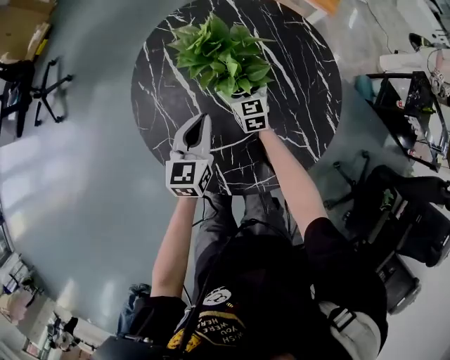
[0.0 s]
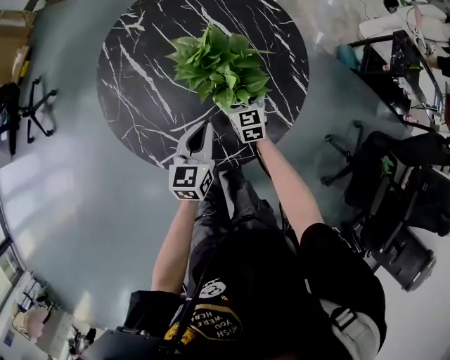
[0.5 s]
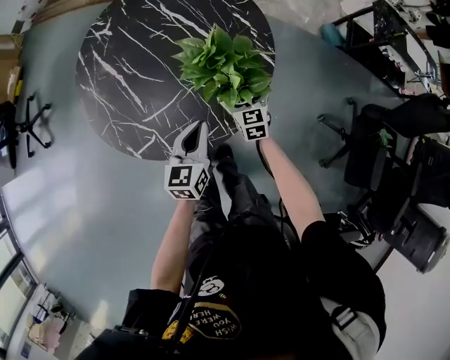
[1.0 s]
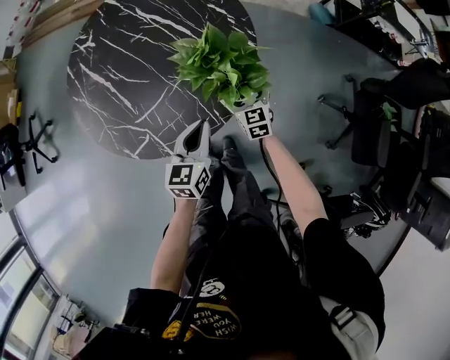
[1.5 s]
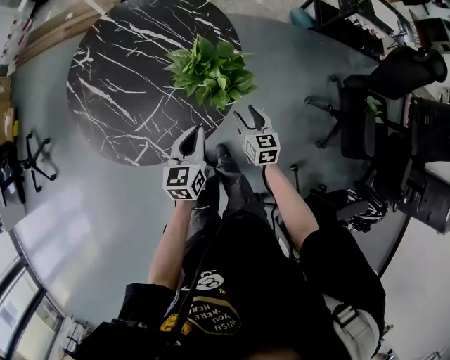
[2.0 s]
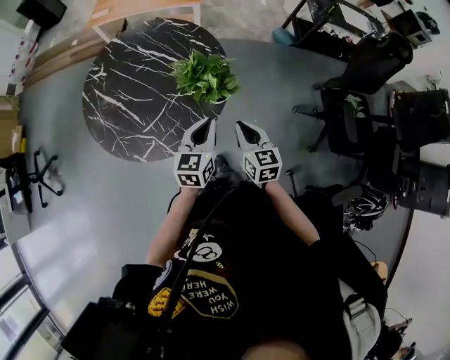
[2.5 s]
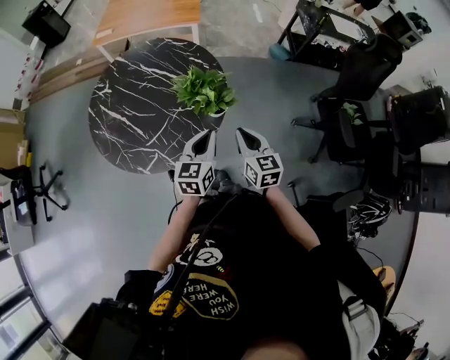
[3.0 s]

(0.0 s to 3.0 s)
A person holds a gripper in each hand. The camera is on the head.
0.0 s - 1.5 s: The two grippers go some 35 cm to the right and backward. The left gripper turns by some 20 degrees.
1.5 s - 3.0 s: The right gripper moves upward and backward, approximately 35 cm, changes its angle by about 20 degrees, and closes up; the left gripper heads upward, covering roughly 15 cm.

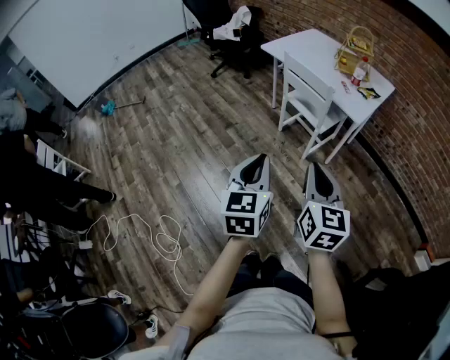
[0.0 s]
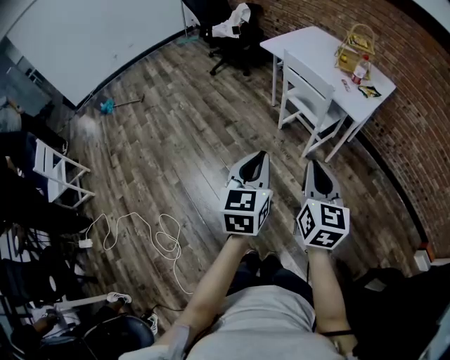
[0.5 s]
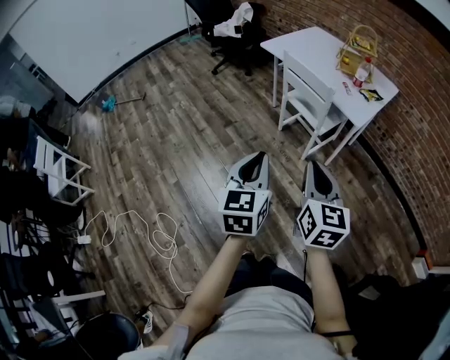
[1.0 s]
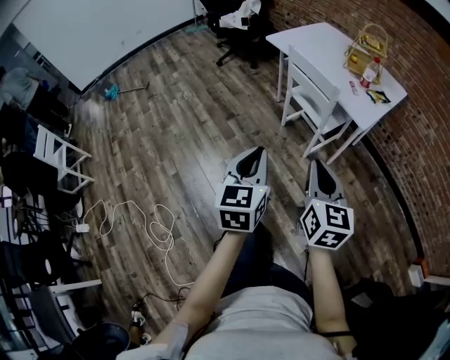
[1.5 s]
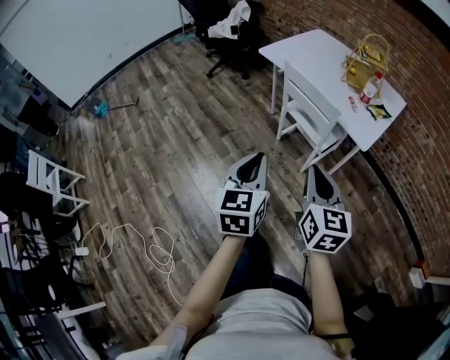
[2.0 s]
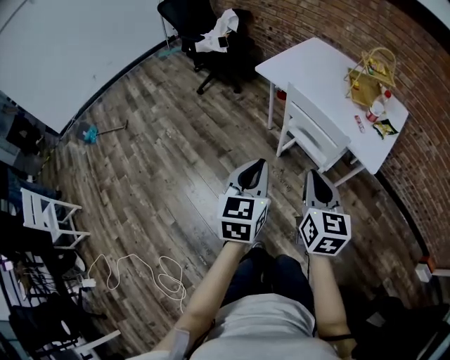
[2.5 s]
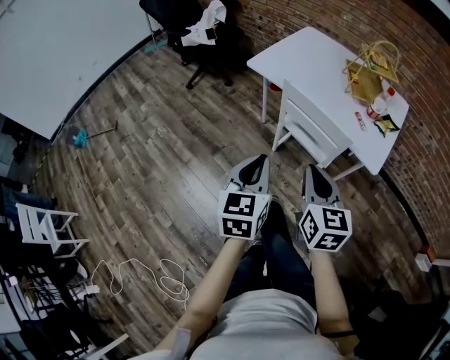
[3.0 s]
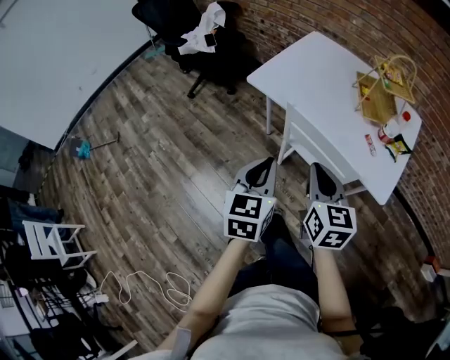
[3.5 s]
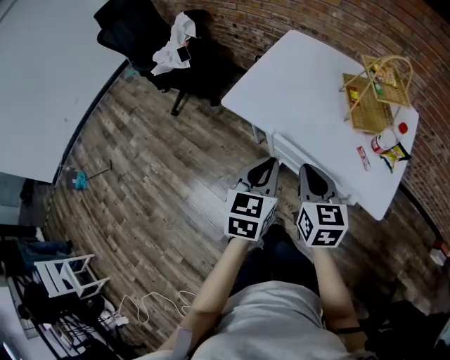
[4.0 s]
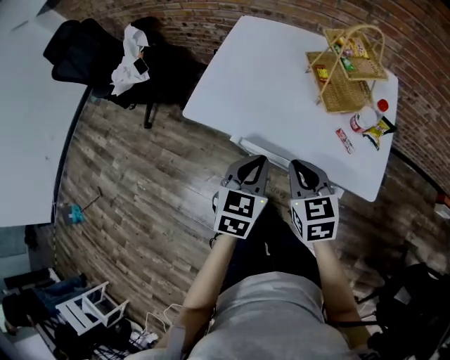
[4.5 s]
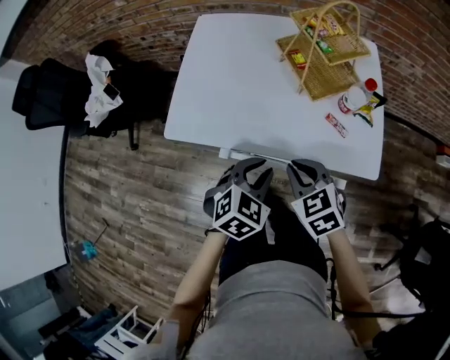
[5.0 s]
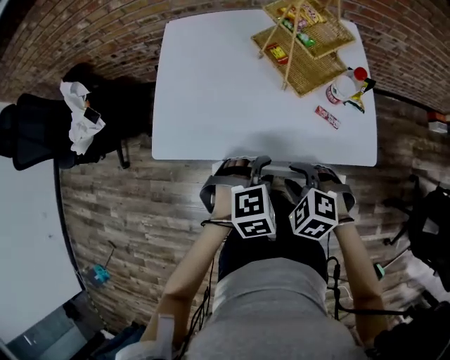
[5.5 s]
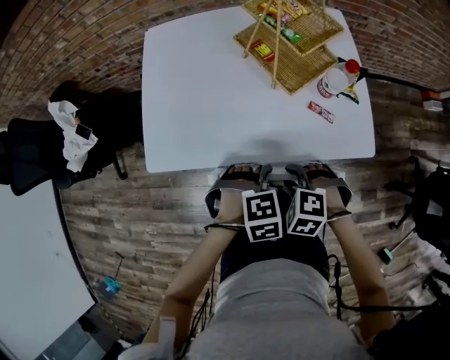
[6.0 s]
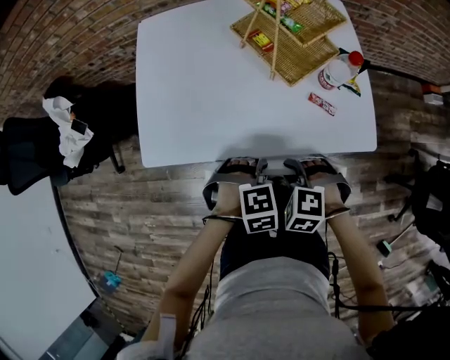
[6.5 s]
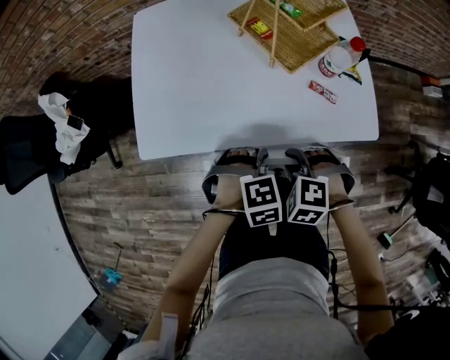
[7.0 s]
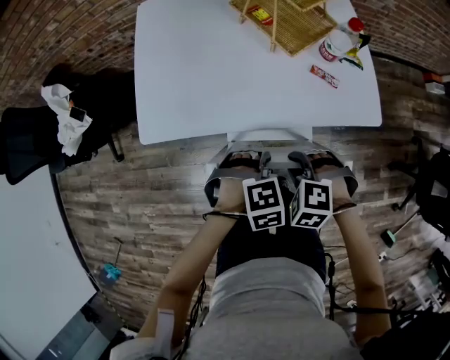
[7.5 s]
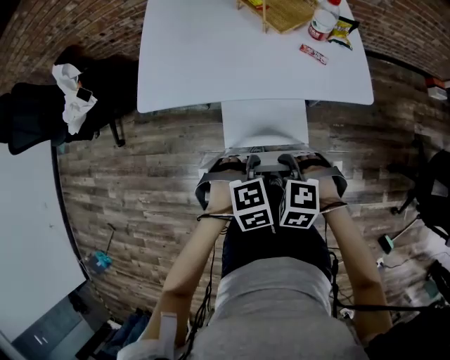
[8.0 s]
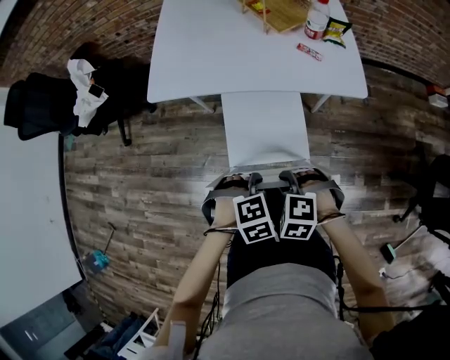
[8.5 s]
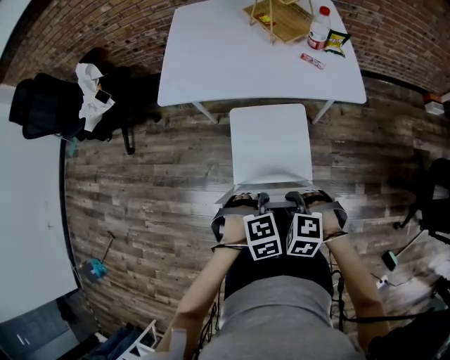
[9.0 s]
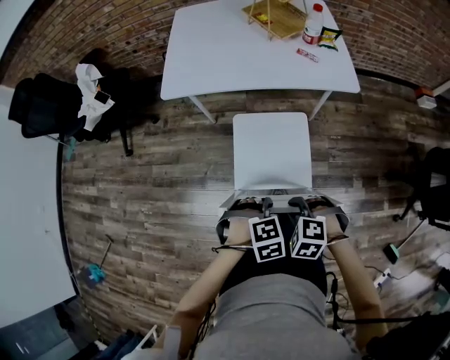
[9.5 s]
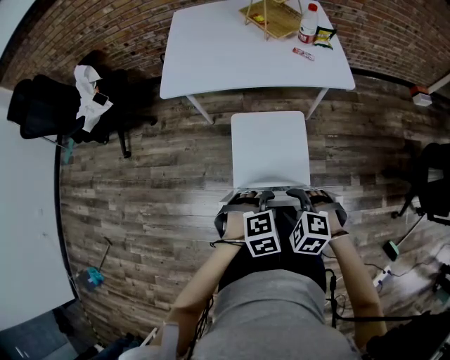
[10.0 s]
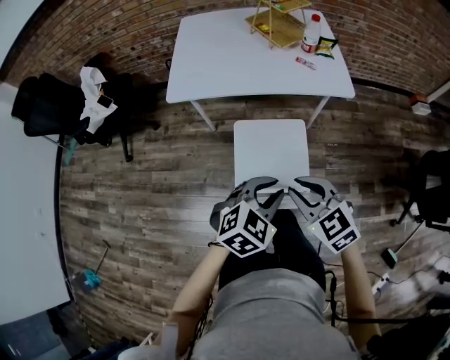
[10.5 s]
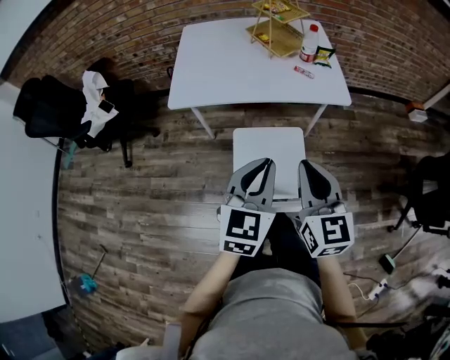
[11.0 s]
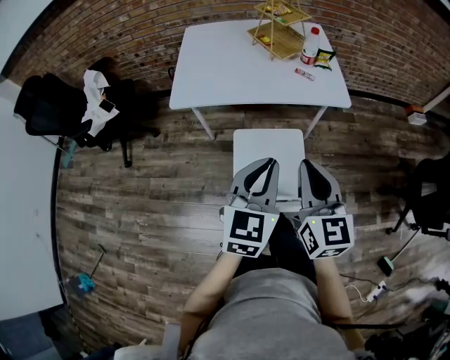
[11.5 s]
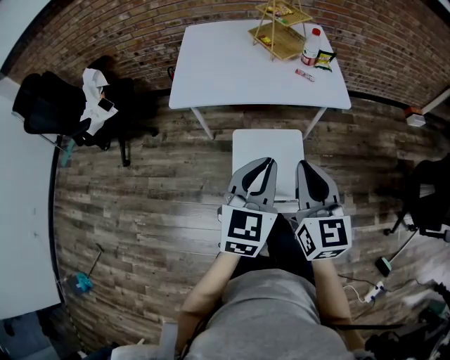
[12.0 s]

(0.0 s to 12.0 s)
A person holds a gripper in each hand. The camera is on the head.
0.0 s - 2.0 s: Both grippers travel together forward, about 20 cm.
2.0 s - 4.0 s: The two grippers travel together, forward, approximately 50 cm. The left gripper rotates roughly 20 degrees.
4.0 s - 6.0 s: Both grippers move downward, approximately 15 cm. The right gripper angles its fingers downward, by roughly 50 degrees, and opens its fingers. Meanwhile the left gripper tips its fingers downward by roughly 50 degrees, and opens.
6.0 s - 8.0 s: The right gripper ends up about 15 cm from where it was, while the left gripper changes place by some 15 cm, and closes up.
8.0 s - 10.0 s: The right gripper changes place by about 25 cm, and opens; the left gripper ends up roughly 25 cm from where it was.
10.0 s - 12.0 s: The two grippers go about 25 cm upward and forward. The right gripper points its fingers roughly 50 degrees further upward, and closes, while the left gripper points its fingers approximately 50 degrees further upward, and closes.

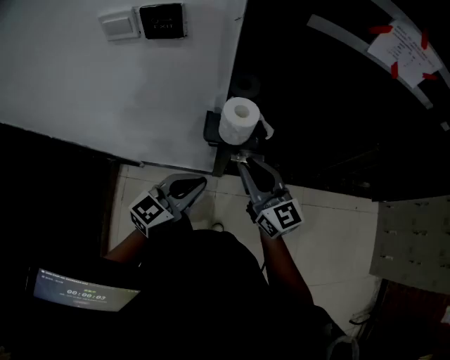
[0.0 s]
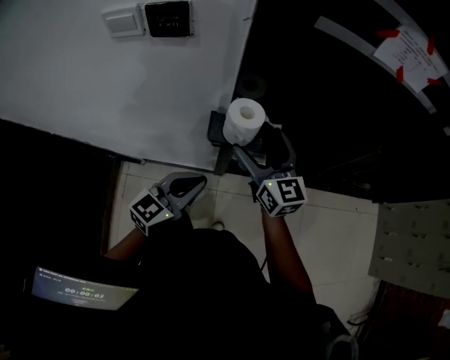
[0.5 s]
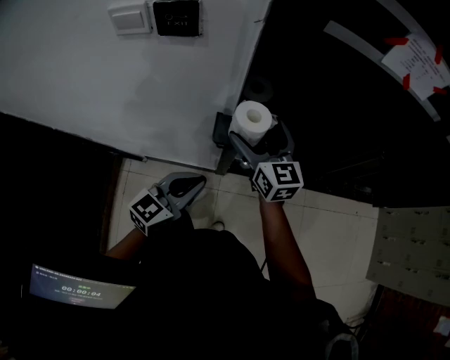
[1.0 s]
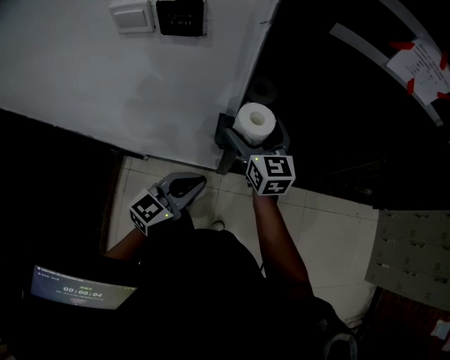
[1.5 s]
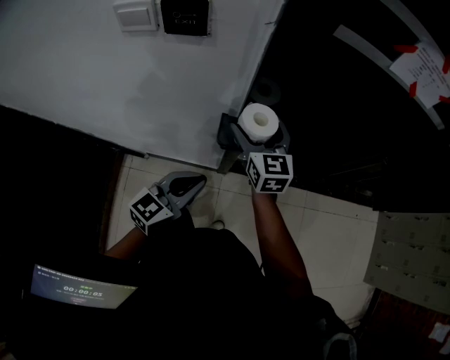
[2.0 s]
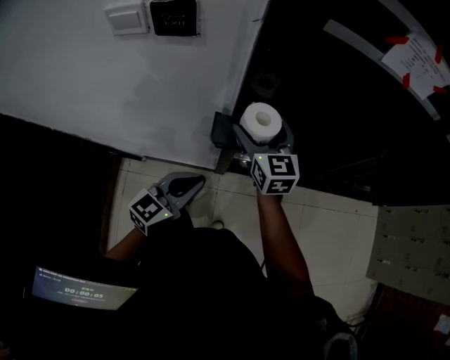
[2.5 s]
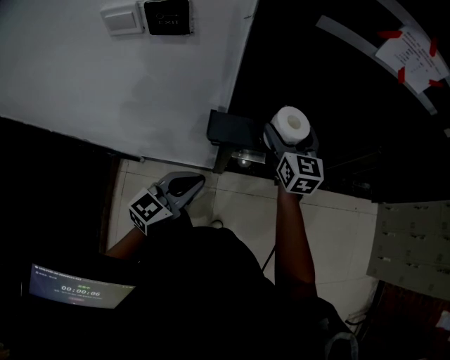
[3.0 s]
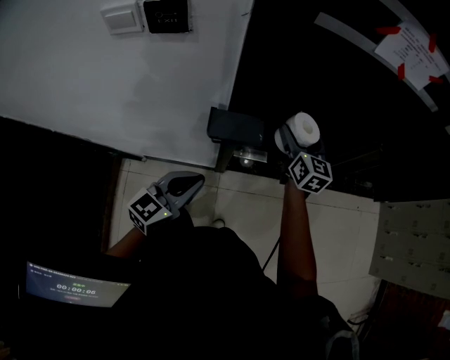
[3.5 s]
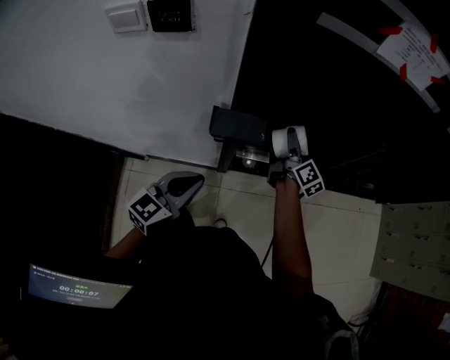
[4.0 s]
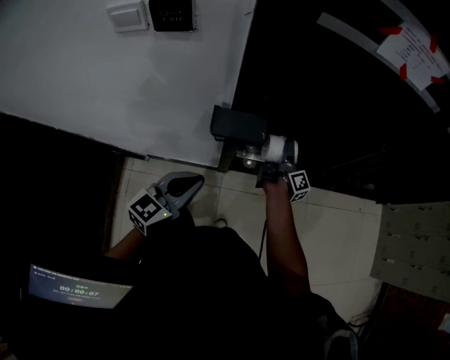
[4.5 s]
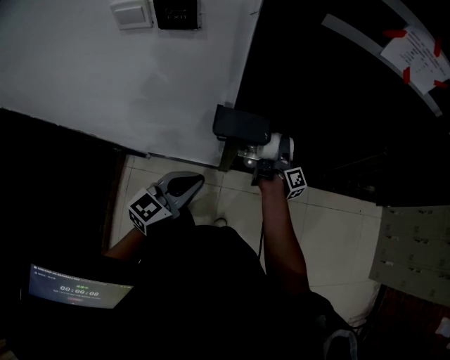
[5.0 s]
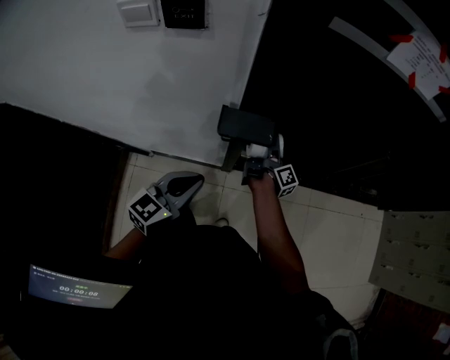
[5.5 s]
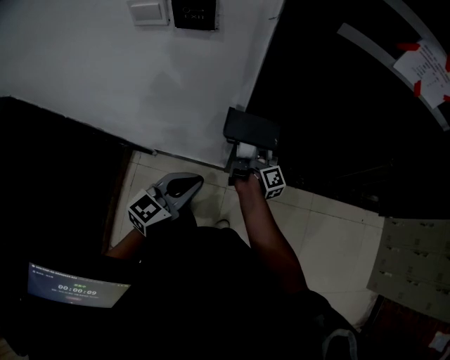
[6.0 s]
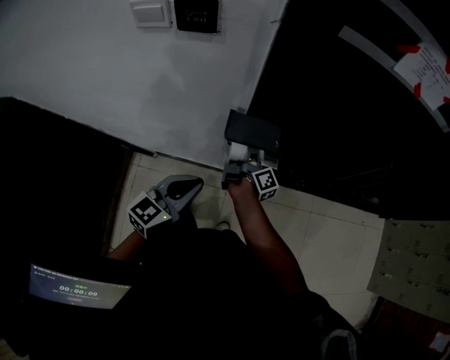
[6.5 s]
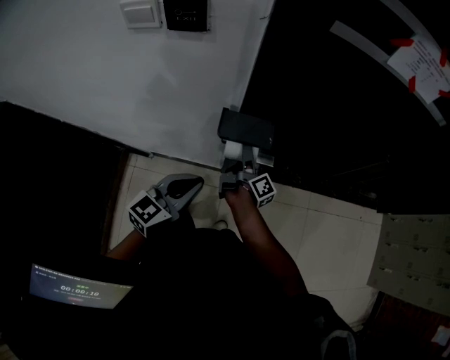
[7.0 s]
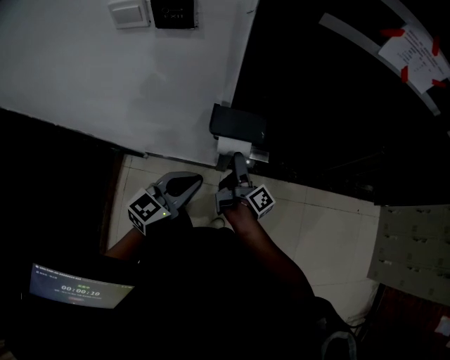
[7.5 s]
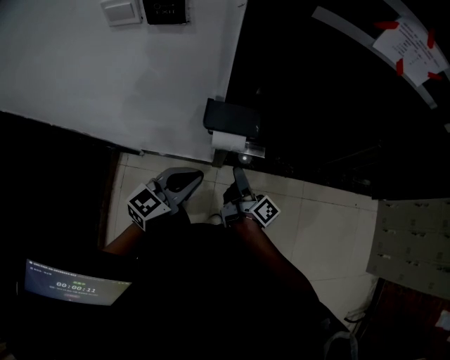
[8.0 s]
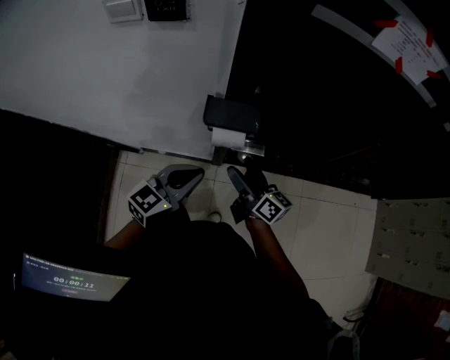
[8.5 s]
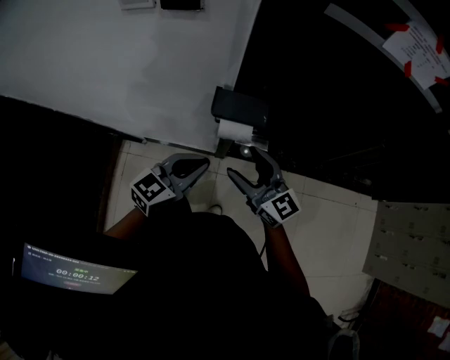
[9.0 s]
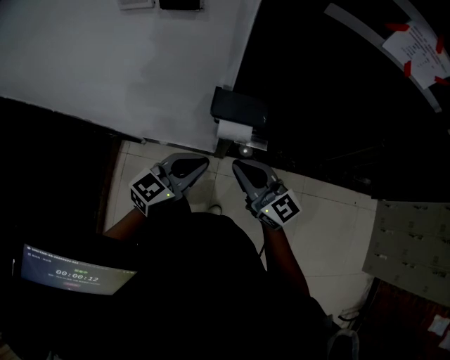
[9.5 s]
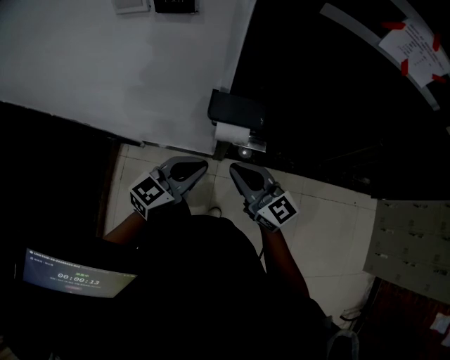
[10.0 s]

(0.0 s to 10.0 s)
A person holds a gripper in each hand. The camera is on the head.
0.0 s - 2.0 s: The right gripper is displaced forward and to the left by about 15 cm, and opens up.
2.0 s - 4.0 s: The right gripper heads to the right and downward, covering about 20 cm, and twists approximately 50 degrees clockwise, seen from behind.
4.0 s - 6.0 s: The right gripper shifts approximately 15 cm to the left, downward and backward, and changes its angle by about 30 degrees.
6.0 s - 8.0 s: The right gripper moves backward, about 15 cm, and rotates approximately 30 degrees.
8.0 s - 10.0 s: The right gripper moves upward and backward, approximately 10 cm, rolls counterclockwise, seen from behind, by about 70 degrees, and closes.

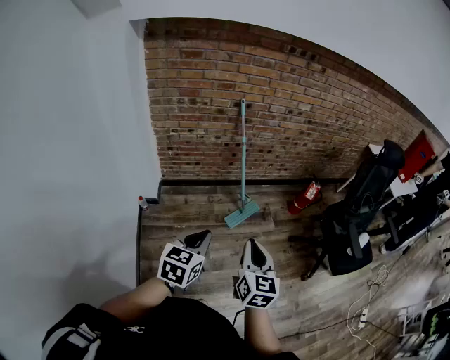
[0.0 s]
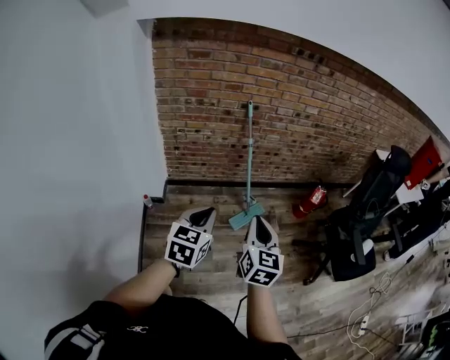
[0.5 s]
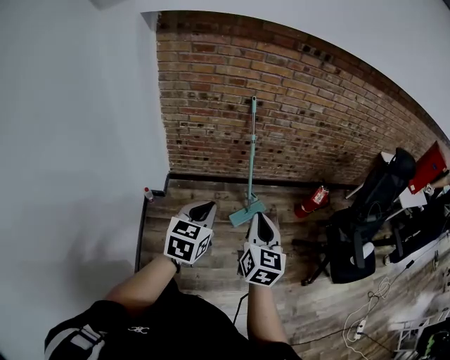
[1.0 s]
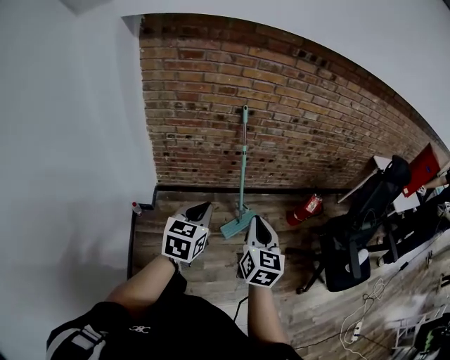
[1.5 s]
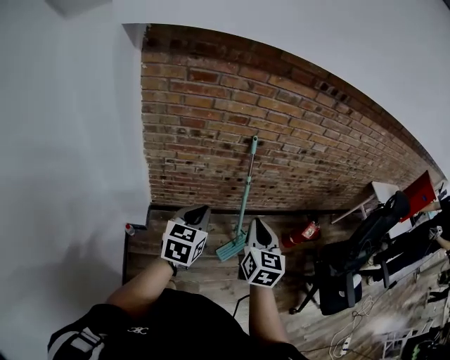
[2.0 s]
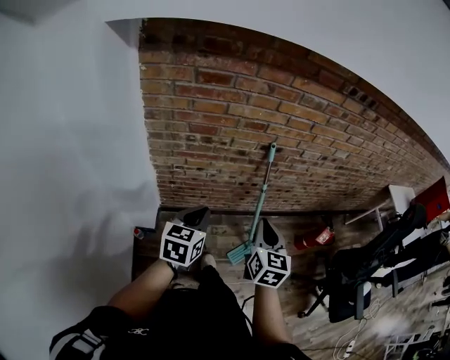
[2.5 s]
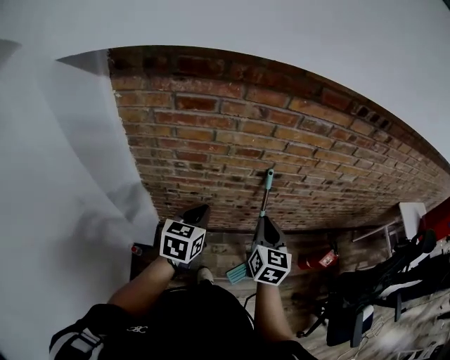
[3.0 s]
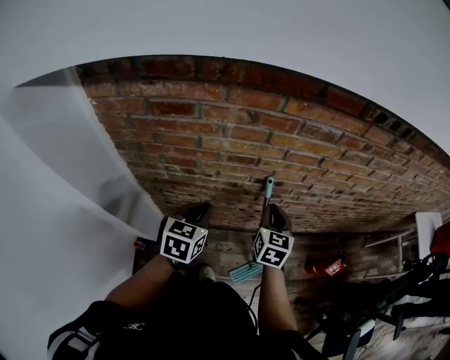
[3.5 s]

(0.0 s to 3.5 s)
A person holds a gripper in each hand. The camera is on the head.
0.0 s - 2.0 s: The right gripper is displaced forward by roughly 30 cm; the left gripper goes approximately 35 cm forward and to the left.
2.0 s - 3.5 s: Both grippers travel together forward, roughly 35 cm.
